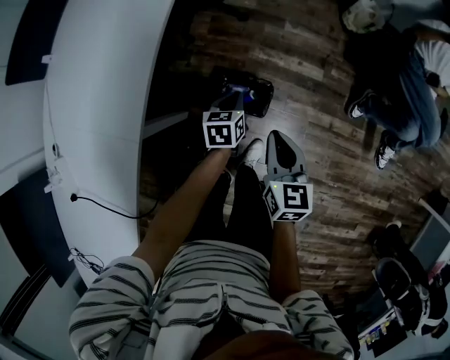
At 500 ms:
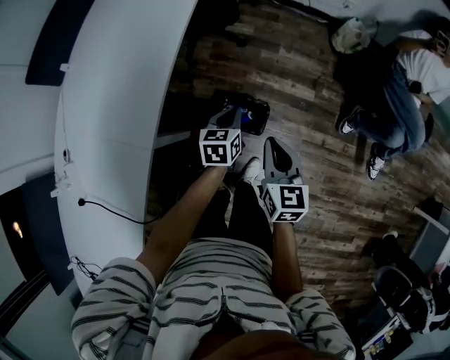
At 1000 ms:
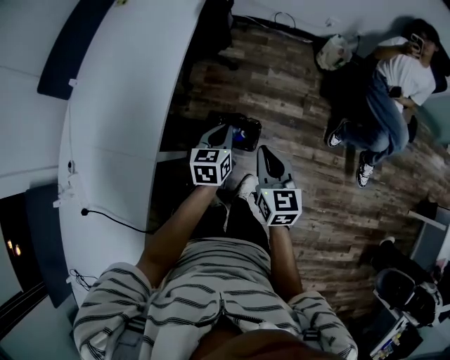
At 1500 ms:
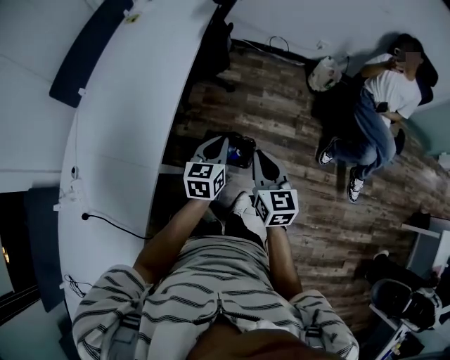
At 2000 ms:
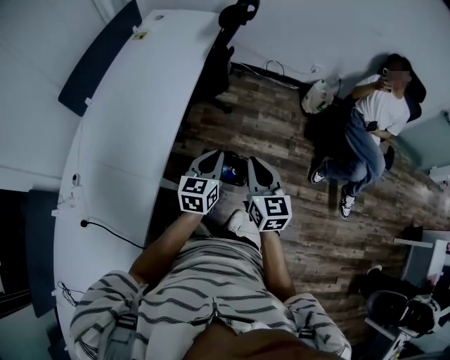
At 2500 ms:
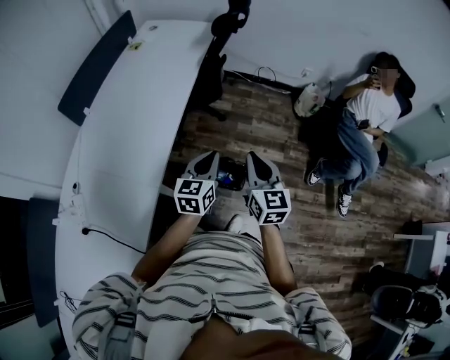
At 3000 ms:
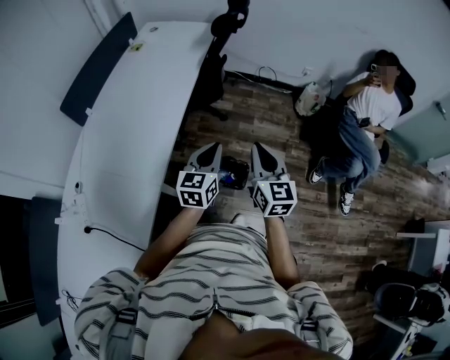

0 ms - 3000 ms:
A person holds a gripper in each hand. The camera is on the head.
0 ms - 1500 ms: The right gripper shifts some 15 cm upward, while the left gripper is displaced upward by approximately 25 cm, and turns by some 20 degrees.
1500 ms - 3000 ms: Both grippers travel together upward, some 10 cm.

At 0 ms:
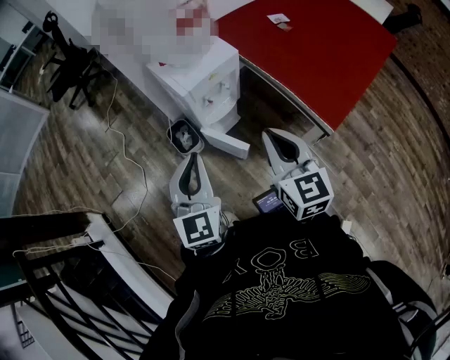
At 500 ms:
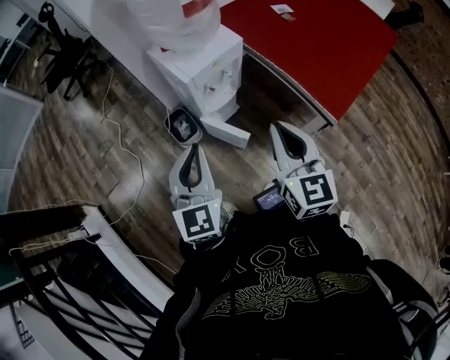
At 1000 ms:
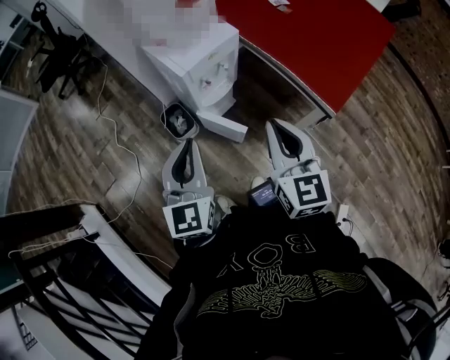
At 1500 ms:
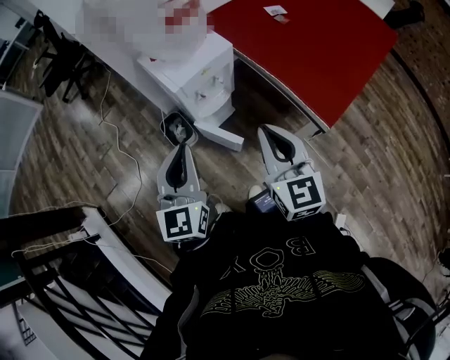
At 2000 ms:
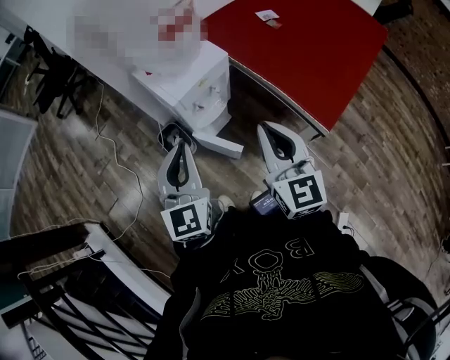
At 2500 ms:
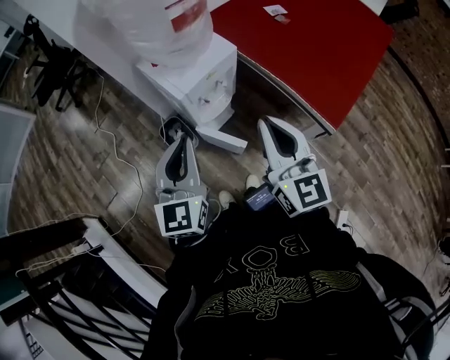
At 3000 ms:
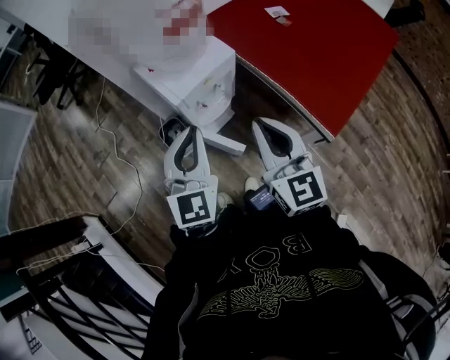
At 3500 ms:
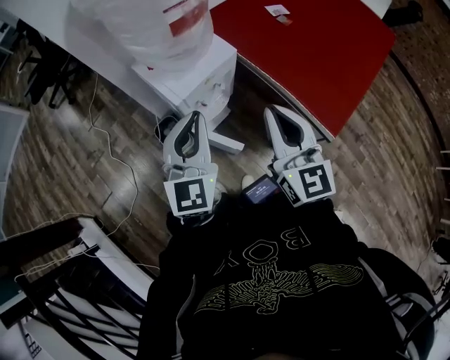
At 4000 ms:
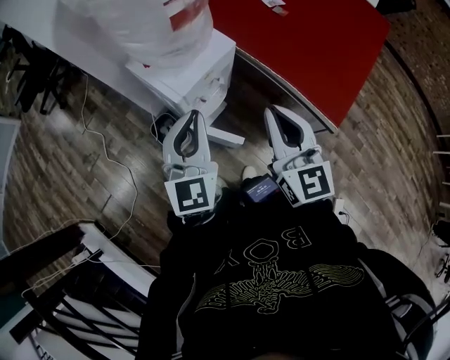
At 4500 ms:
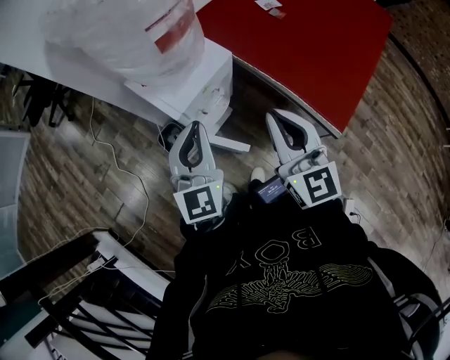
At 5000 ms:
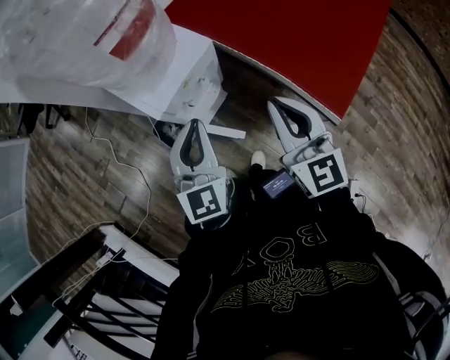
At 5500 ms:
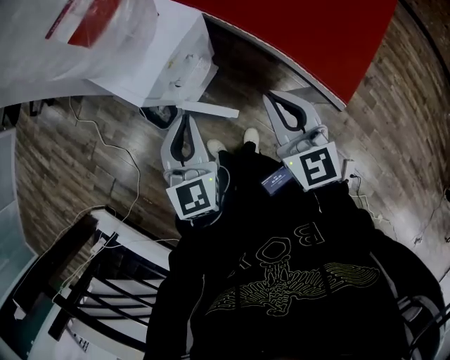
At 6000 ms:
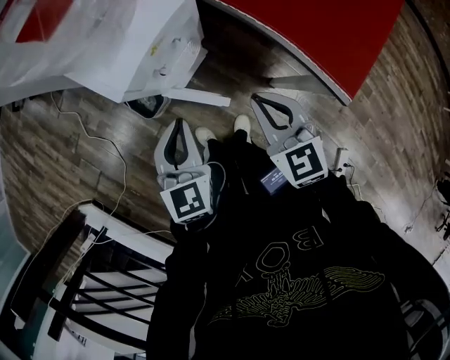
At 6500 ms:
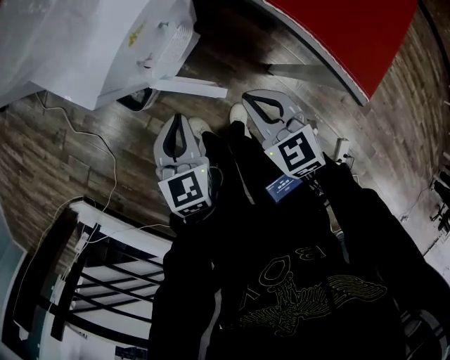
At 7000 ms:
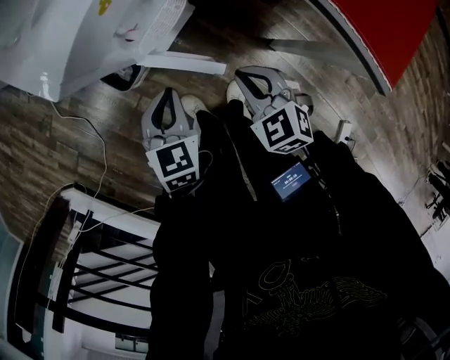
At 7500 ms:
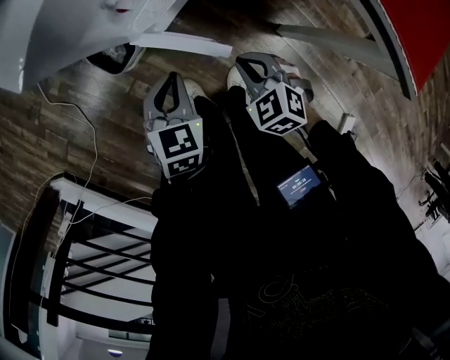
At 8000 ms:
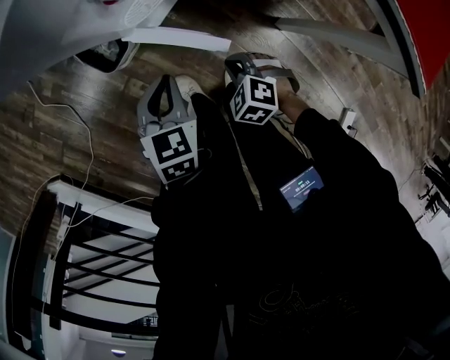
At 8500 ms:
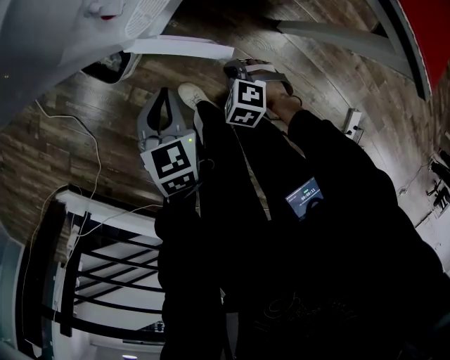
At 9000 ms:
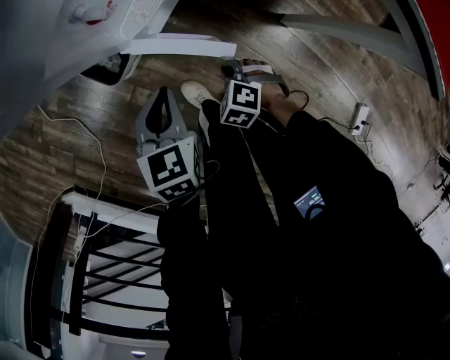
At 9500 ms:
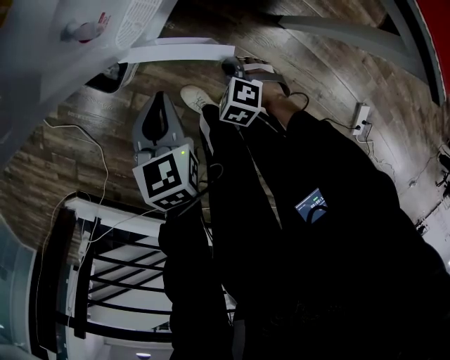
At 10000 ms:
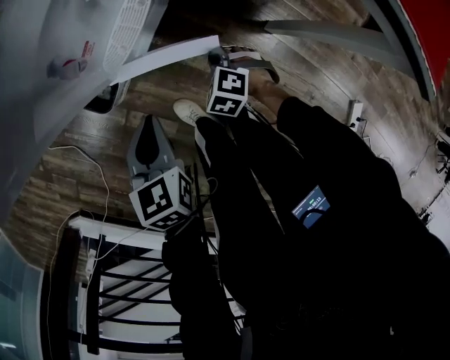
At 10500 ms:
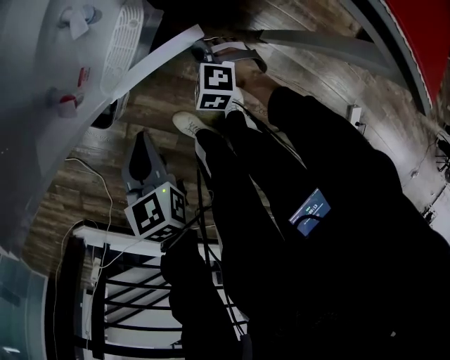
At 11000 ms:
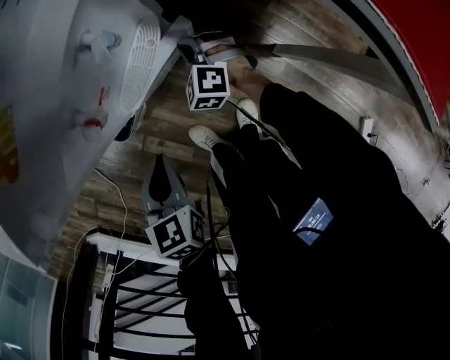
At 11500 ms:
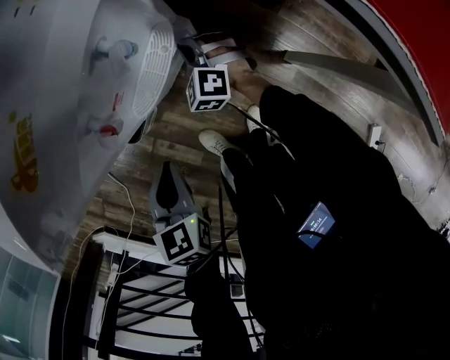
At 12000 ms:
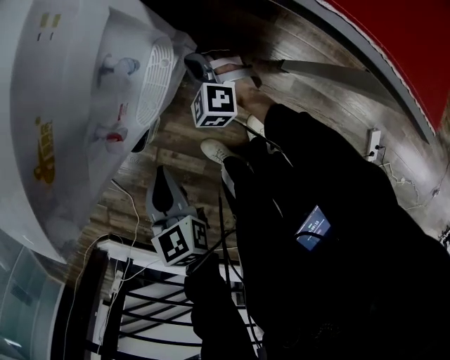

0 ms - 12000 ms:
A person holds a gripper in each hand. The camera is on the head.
0 ms - 2000 ms: The left gripper moves forward, roughly 5 cm.
2000 ms - 4000 ms: The grippers both shift forward by approximately 10 cm.
4000 ms - 6000 ms: The two grippers go roughly 20 cm downward. The left gripper swivels roughly 20 degrees, while the right gripper rotates roughly 30 degrees.
6000 ms - 8000 ms: Both grippers move downward, about 35 cm. The right gripper tips its fingers downward by approximately 40 degrees. Meanwhile the left gripper turns by roughly 20 degrees.
8000 ms - 10000 ms: The right gripper travels forward and downward by roughly 10 cm.
10000 ms - 12000 ms: The right gripper moves forward, roughly 20 cm, and turns by roughly 30 degrees; the left gripper ends up roughly 5 cm from where it was.

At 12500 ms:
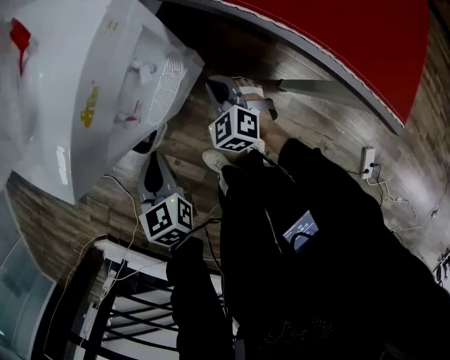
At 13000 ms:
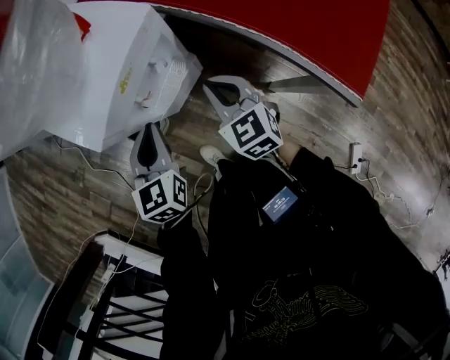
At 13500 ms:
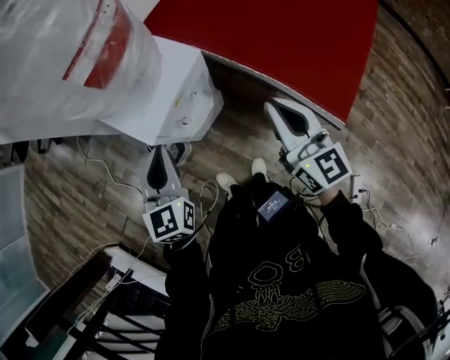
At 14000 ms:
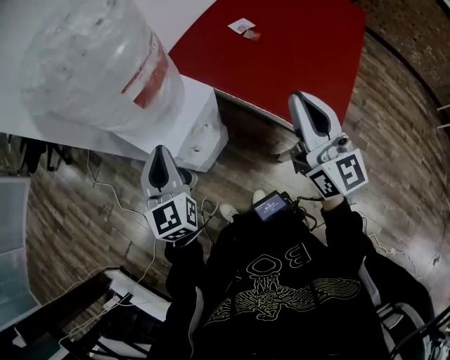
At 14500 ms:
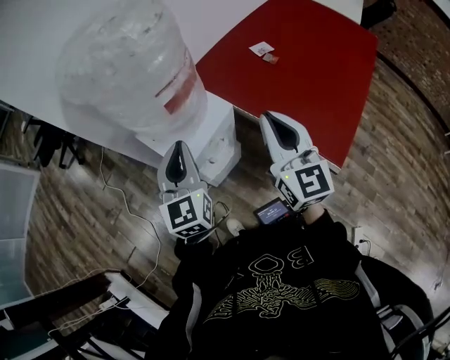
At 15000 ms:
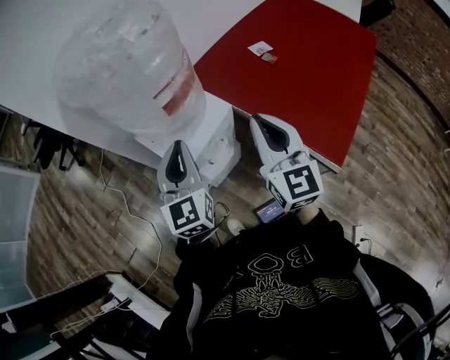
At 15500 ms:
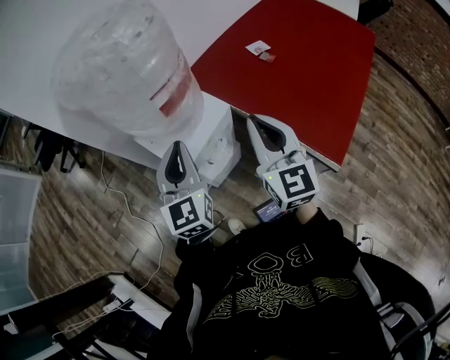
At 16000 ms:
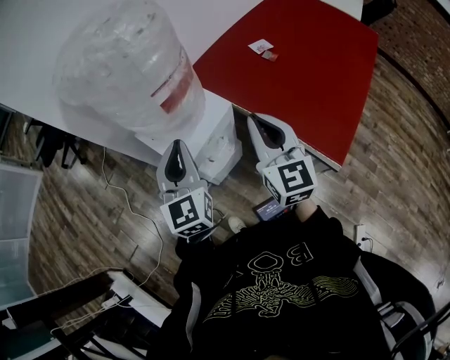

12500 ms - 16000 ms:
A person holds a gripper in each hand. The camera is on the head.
12500 ms - 14500 ms: The two grippers go some 50 cm upward. The right gripper tilts its fingers about 50 degrees upward; the left gripper points its fingers some 40 degrees further upward.
14500 ms - 16000 ms: There are only small adjustments of the grippers.

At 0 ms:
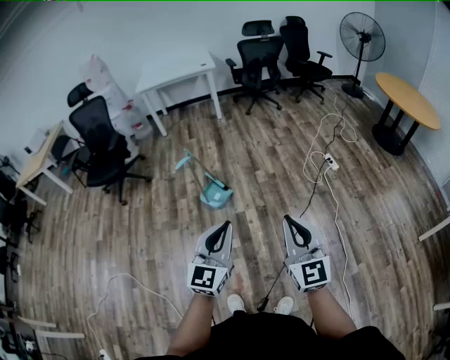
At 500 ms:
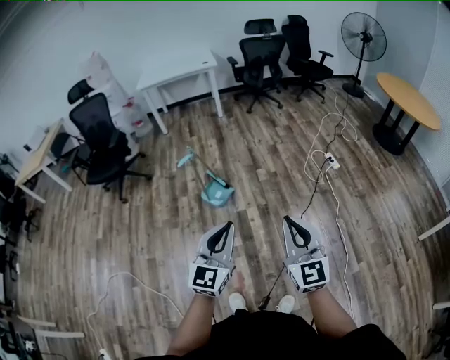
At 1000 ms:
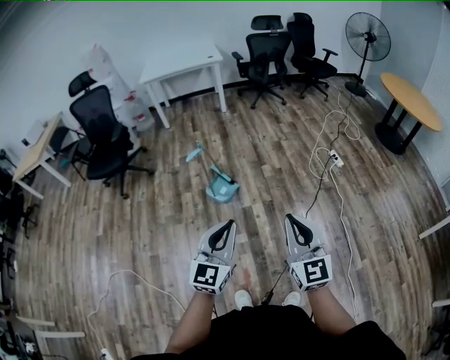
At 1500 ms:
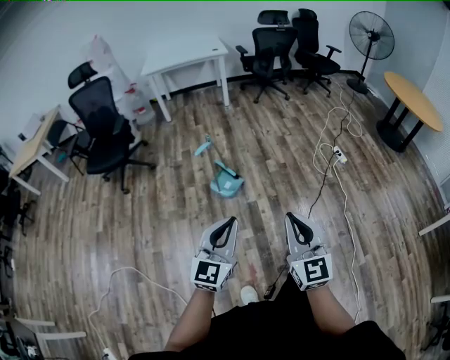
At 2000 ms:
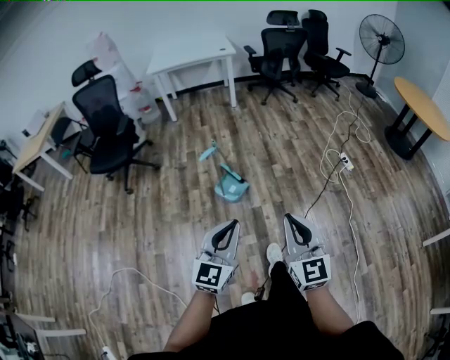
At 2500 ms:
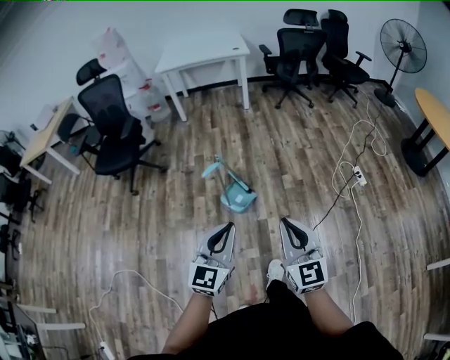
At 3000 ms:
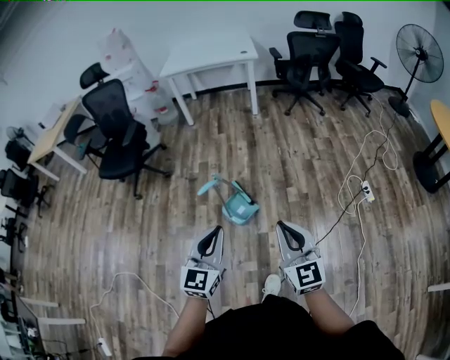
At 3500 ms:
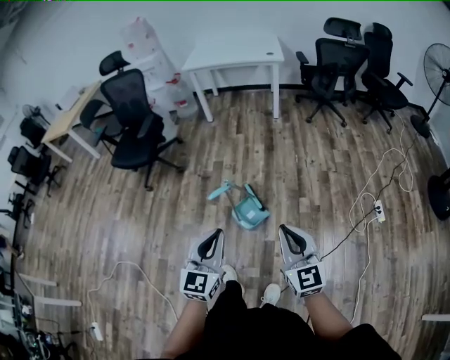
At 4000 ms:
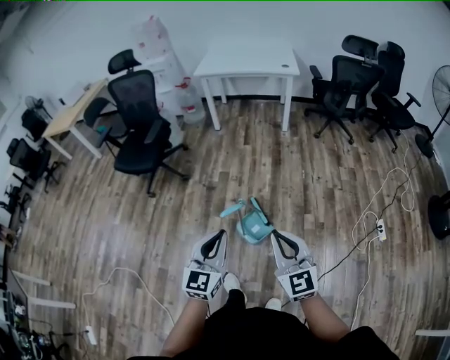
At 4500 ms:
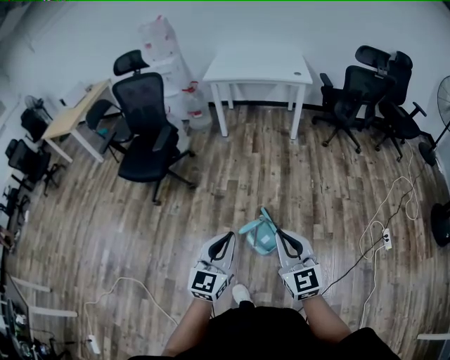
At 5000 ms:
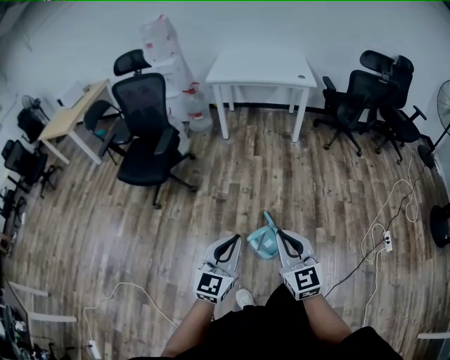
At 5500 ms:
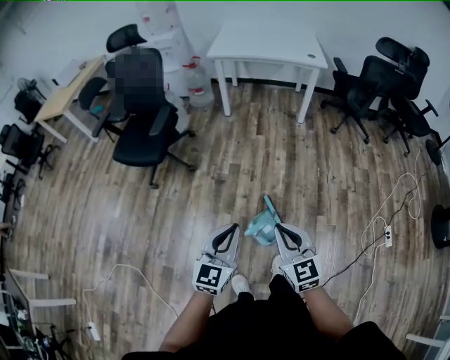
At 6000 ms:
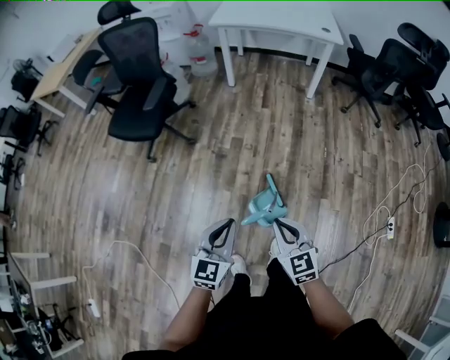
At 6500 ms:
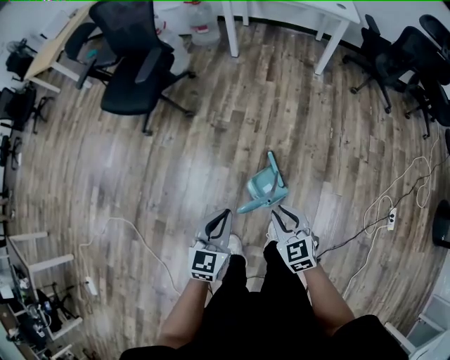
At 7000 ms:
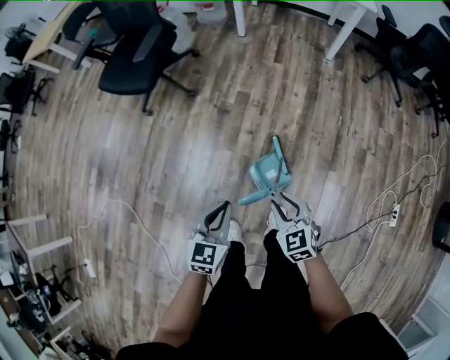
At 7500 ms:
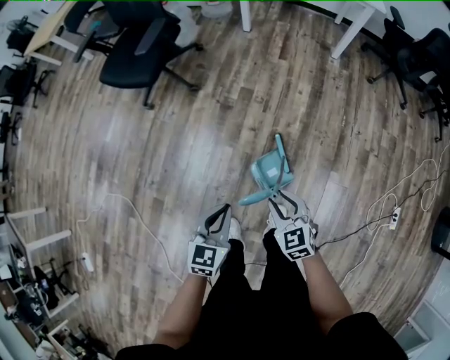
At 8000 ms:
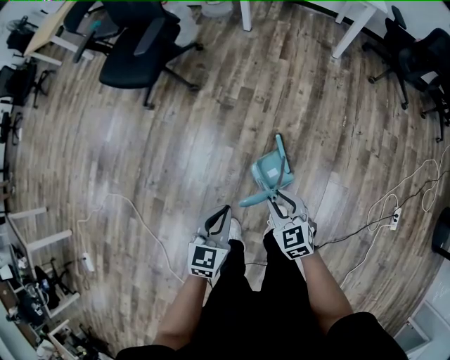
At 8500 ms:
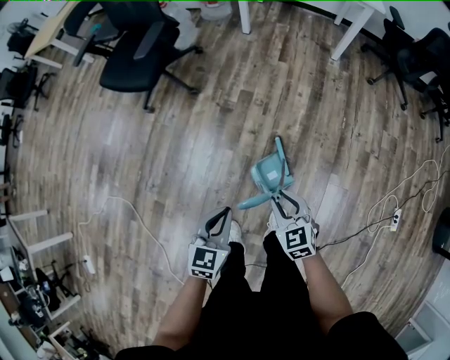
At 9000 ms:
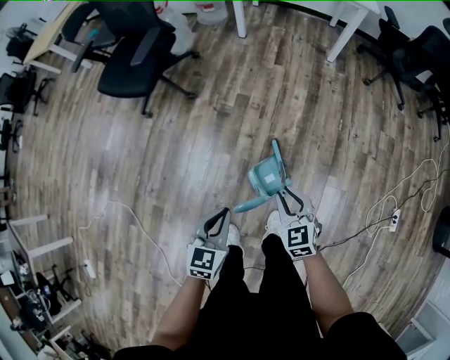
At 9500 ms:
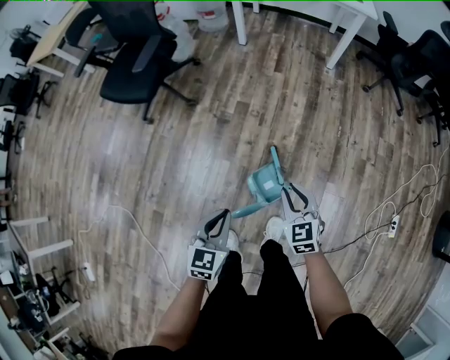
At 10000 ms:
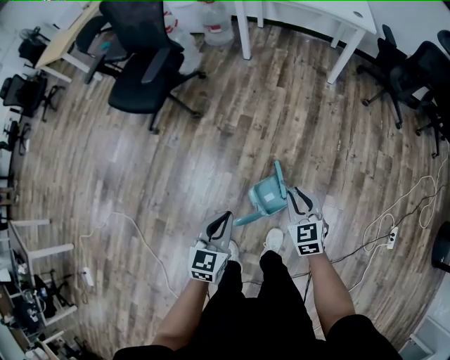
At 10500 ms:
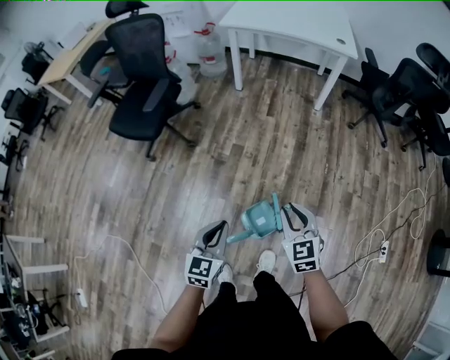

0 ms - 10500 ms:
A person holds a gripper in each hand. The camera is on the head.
0 ms - 2000 ms: The two grippers go some 15 cm to the left.
2000 ms - 4000 ms: The two grippers go some 30 cm forward. The right gripper swivels some 20 degrees; the left gripper rotates about 20 degrees.
4000 ms - 6500 ms: The left gripper shifts approximately 20 cm forward, downward and to the left. The right gripper moves downward and forward, approximately 25 cm, and angles its fingers downward, by some 30 degrees.
6500 ms - 8500 ms: Both grippers move downward, about 5 cm.
8500 ms - 10500 ms: The left gripper goes approximately 10 cm upward and forward; the right gripper shifts roughly 15 cm upward, forward and to the right.
